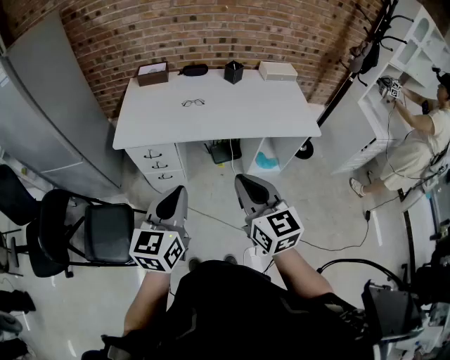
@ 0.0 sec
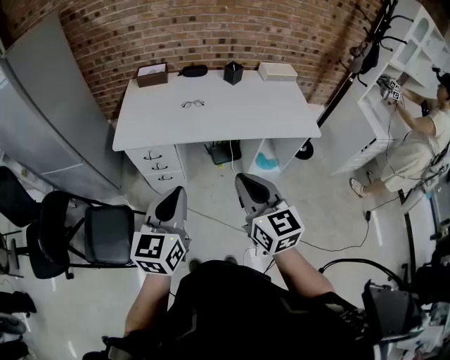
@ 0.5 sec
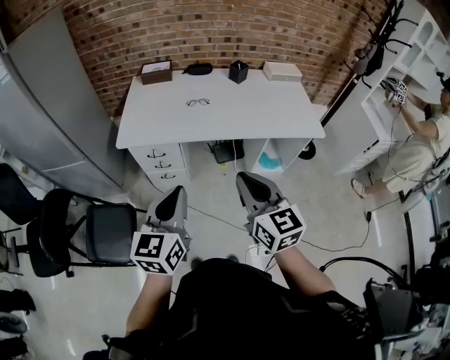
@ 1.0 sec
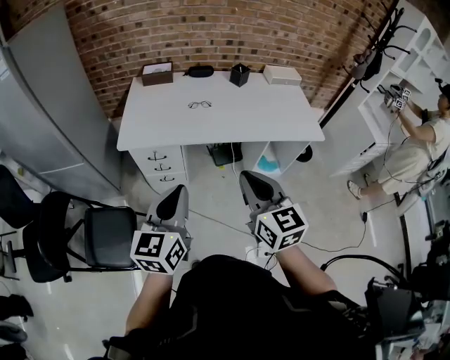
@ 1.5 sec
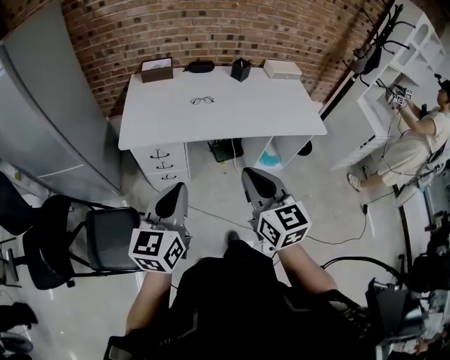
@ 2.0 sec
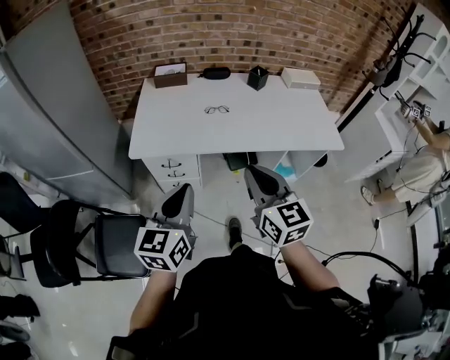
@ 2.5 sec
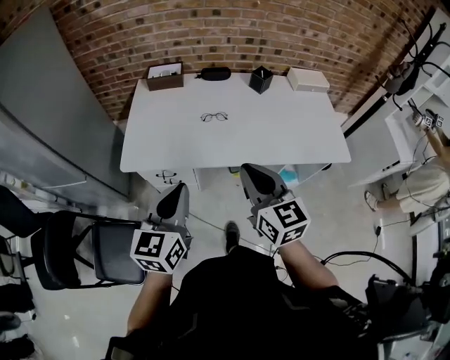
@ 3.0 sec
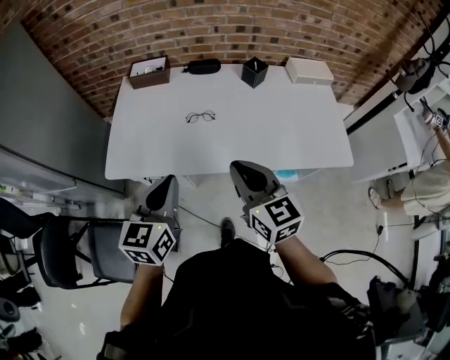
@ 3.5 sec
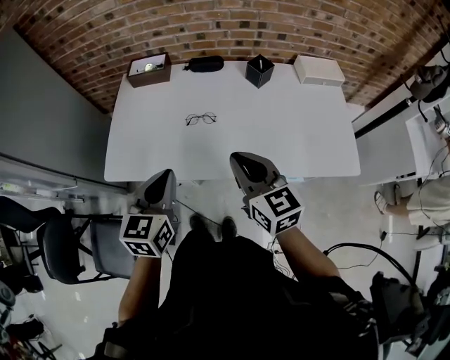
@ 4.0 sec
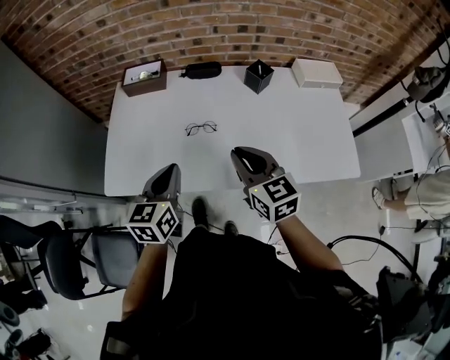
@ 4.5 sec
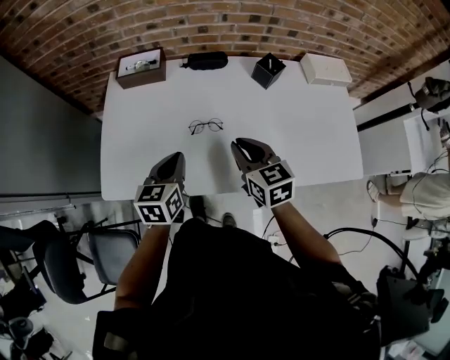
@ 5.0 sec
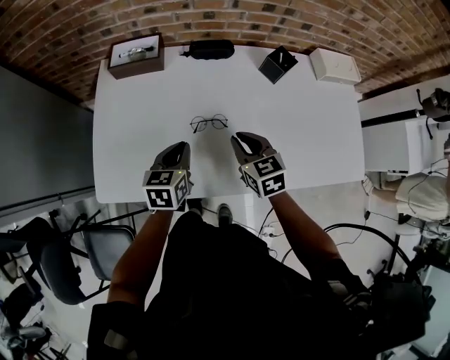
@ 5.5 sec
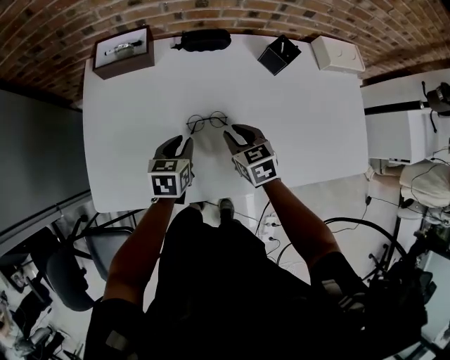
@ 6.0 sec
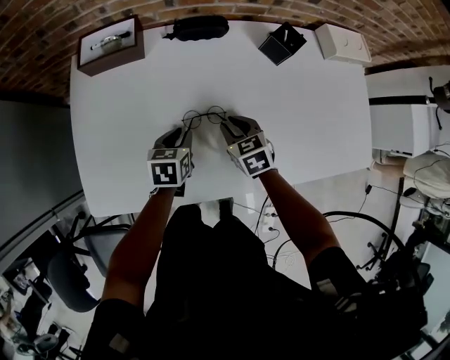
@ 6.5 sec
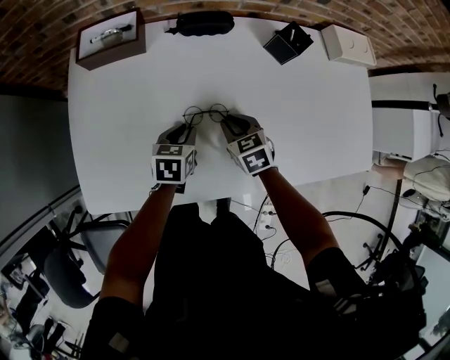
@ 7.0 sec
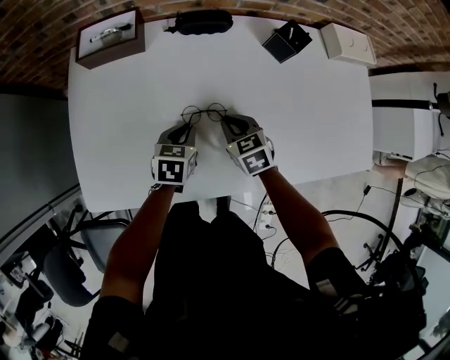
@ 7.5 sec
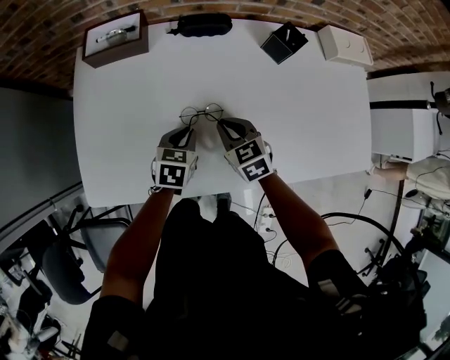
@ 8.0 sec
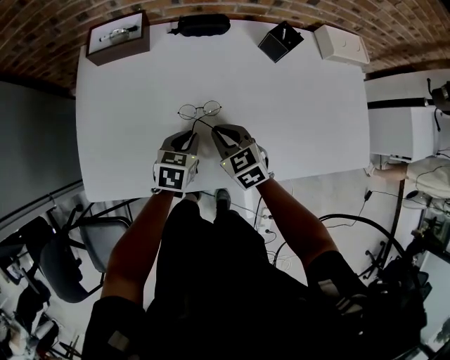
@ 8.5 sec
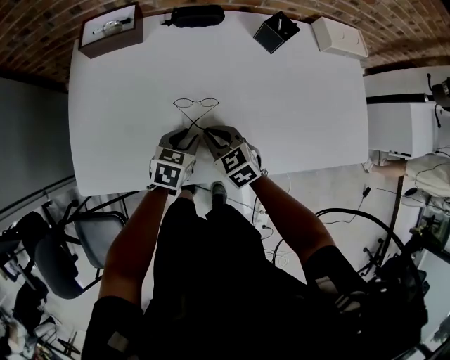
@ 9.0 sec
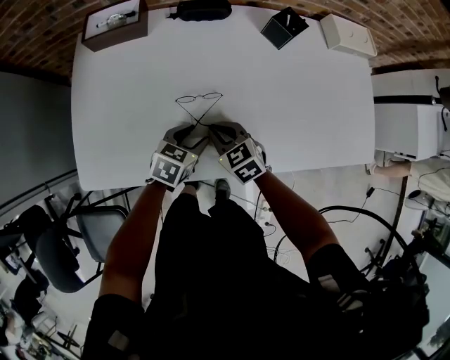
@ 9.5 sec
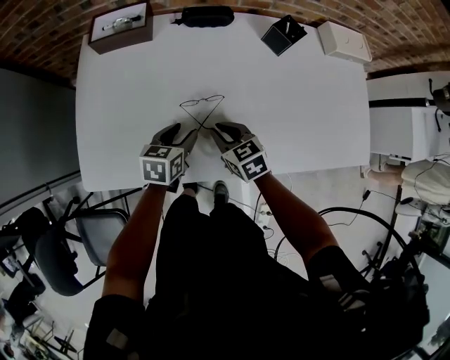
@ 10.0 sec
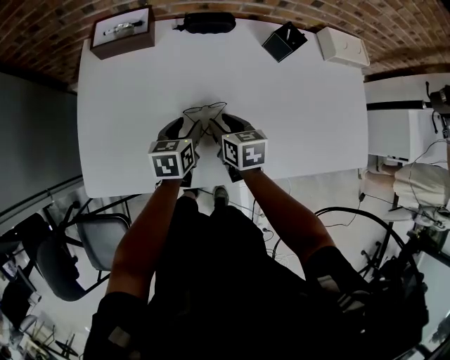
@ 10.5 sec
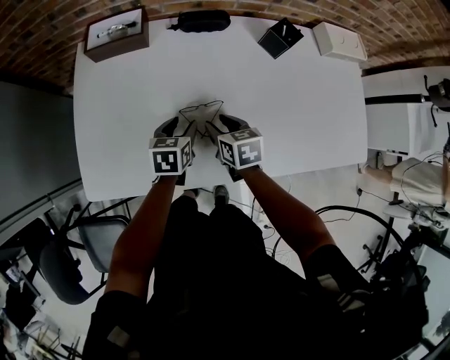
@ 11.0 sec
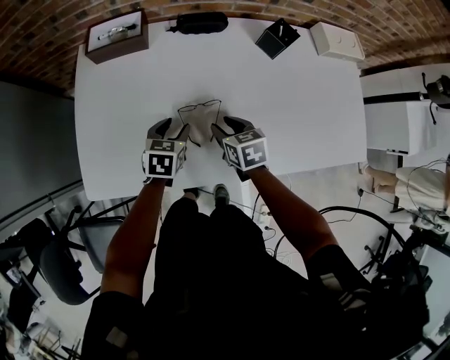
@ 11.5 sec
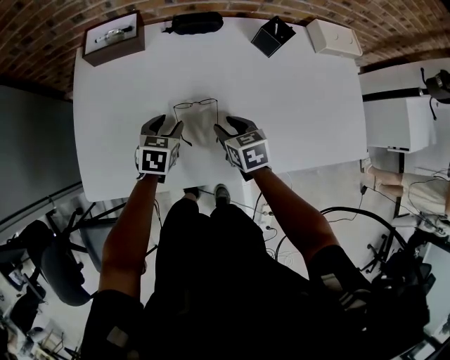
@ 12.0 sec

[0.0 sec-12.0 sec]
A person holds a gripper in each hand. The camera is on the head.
0.0 sec to 2.0 sec: Both grippers move to the left, roughly 10 cm.
2.0 sec to 4.0 sec: Both grippers travel together forward, some 35 cm.
4.0 sec to 6.0 sec: Both grippers move downward and forward, some 35 cm. The right gripper tilts its fingers some 30 degrees downward. Meanwhile the left gripper changes its angle by some 30 degrees, and opens.
8.0 sec to 10.0 sec: The right gripper is displaced backward by roughly 5 cm. The left gripper opens up.
10.0 sec to 12.0 sec: The left gripper ends up about 5 cm from where it was. The right gripper moves some 5 cm, and opens its fingers.

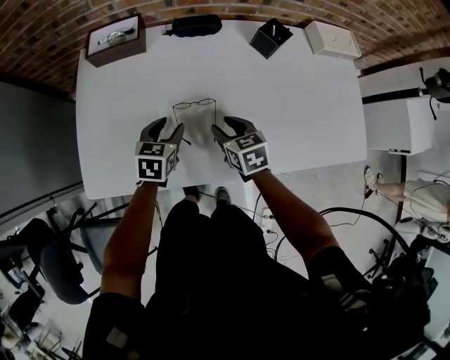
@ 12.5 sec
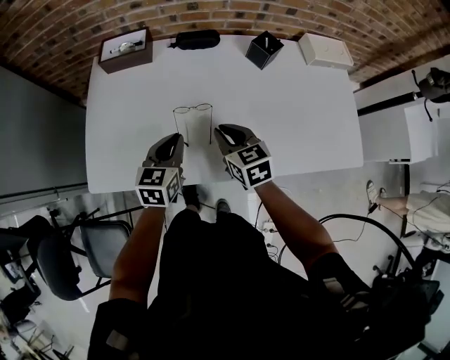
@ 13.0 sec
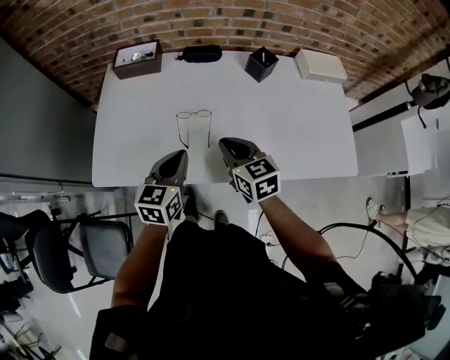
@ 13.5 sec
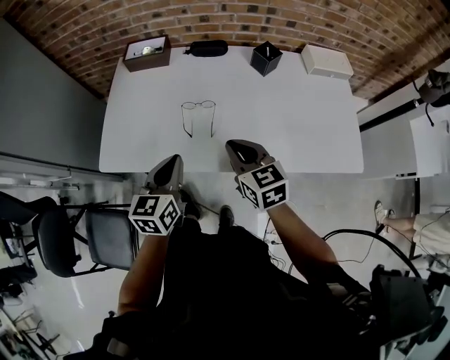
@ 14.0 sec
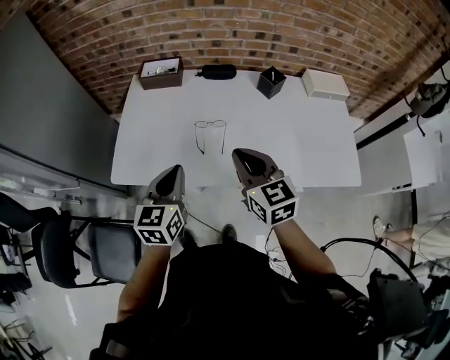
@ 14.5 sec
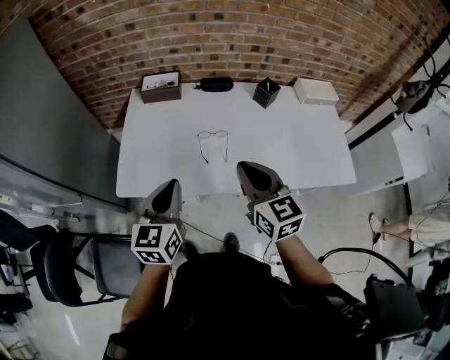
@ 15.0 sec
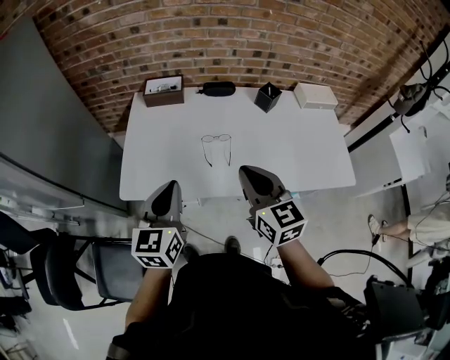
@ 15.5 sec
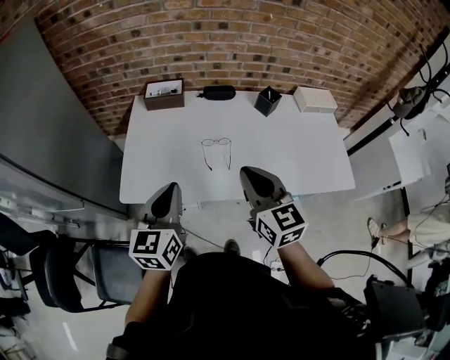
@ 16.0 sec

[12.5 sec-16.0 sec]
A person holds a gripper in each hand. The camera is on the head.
12.5 sec to 14.5 sec: Both grippers travel together upward and backward, roughly 30 cm. The right gripper changes its angle by some 30 degrees, and closes up. The left gripper rotates about 30 degrees, and closes up.
14.5 sec to 16.0 sec: The left gripper shifts approximately 10 cm to the left and upward. Meanwhile the right gripper shifts roughly 5 cm upward.

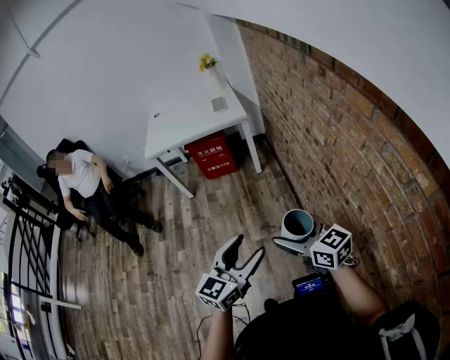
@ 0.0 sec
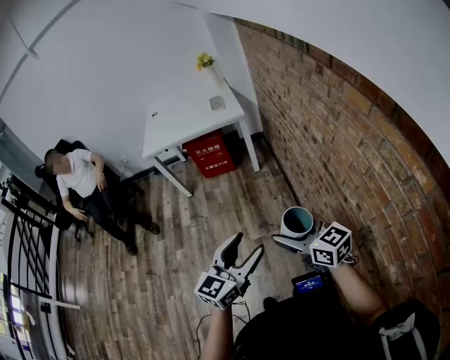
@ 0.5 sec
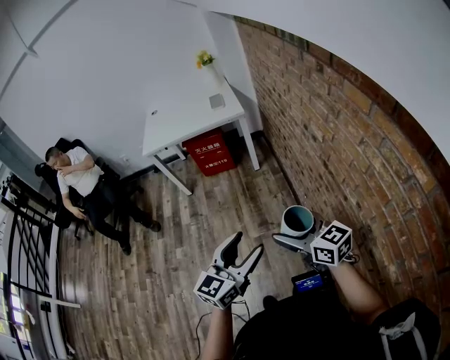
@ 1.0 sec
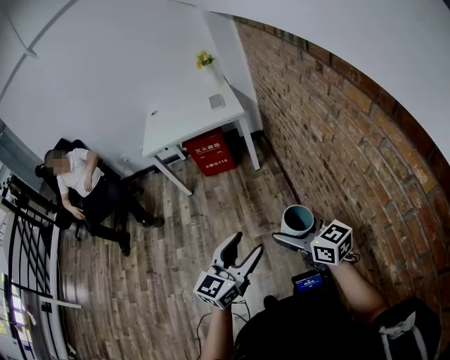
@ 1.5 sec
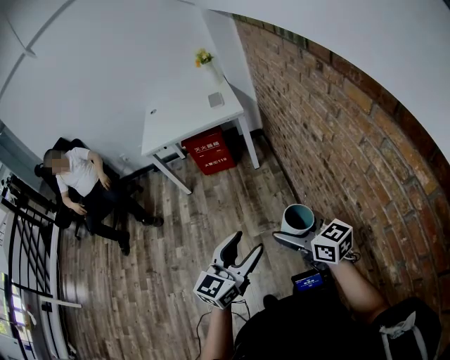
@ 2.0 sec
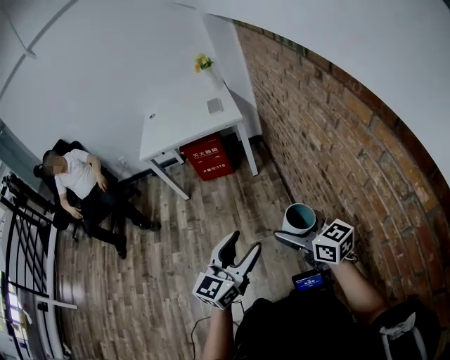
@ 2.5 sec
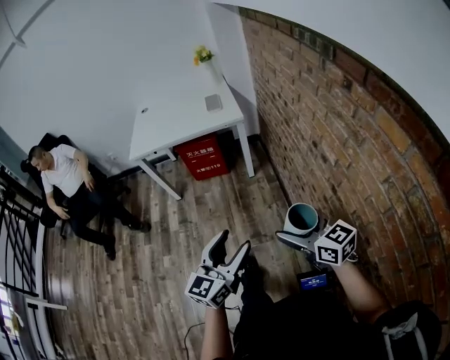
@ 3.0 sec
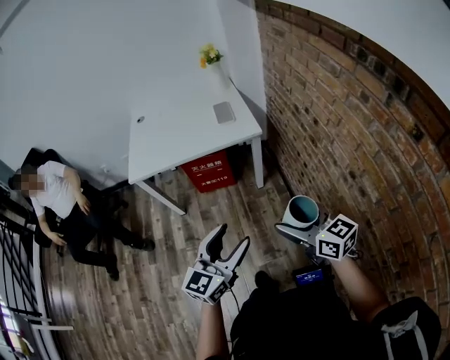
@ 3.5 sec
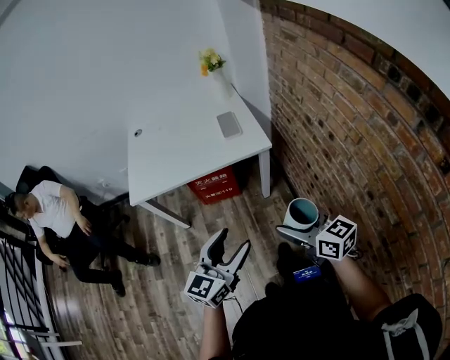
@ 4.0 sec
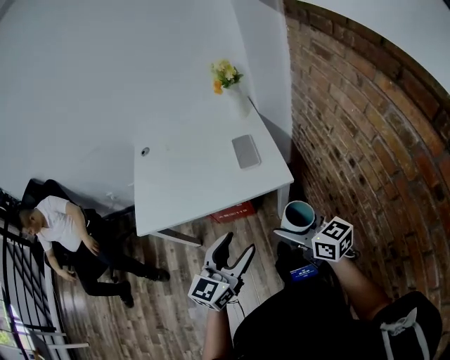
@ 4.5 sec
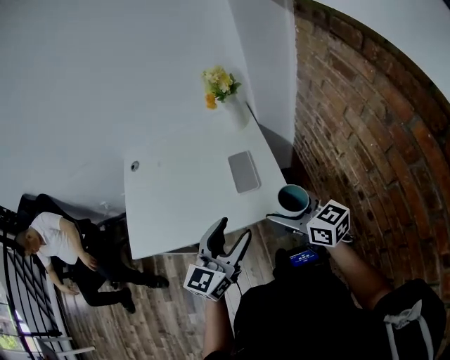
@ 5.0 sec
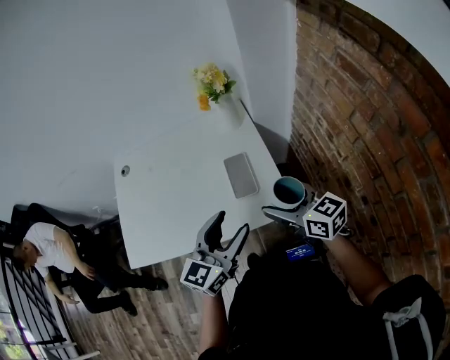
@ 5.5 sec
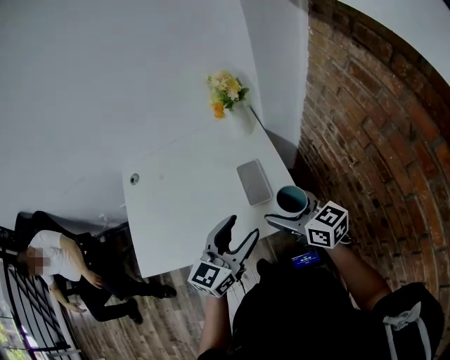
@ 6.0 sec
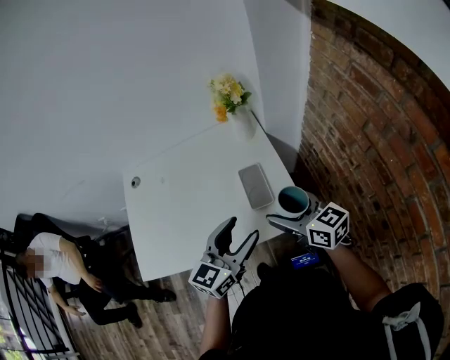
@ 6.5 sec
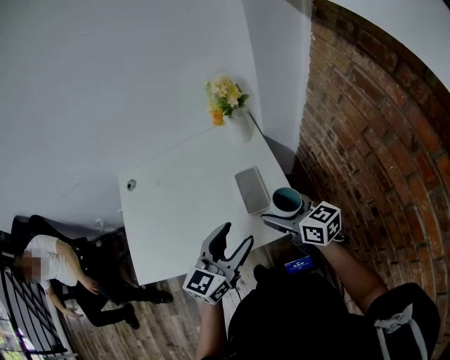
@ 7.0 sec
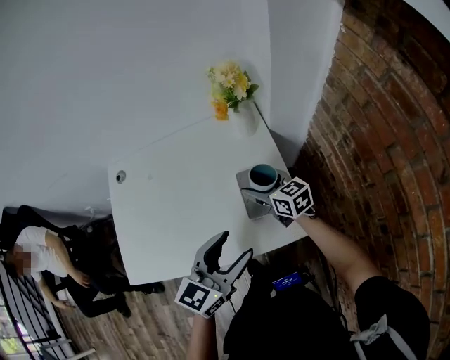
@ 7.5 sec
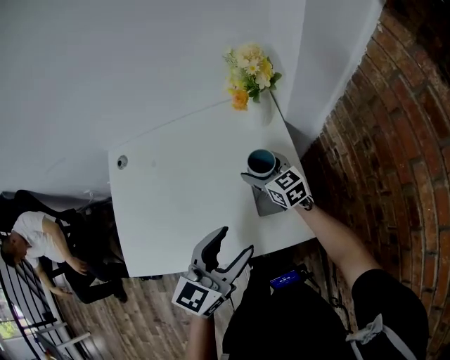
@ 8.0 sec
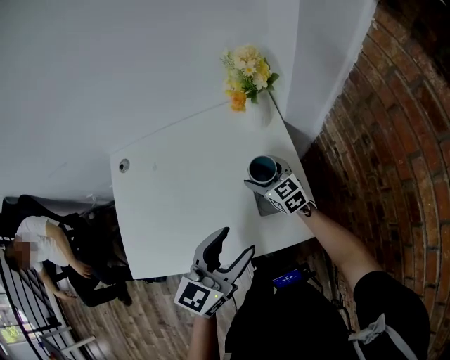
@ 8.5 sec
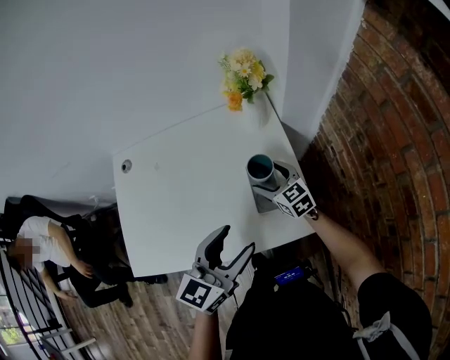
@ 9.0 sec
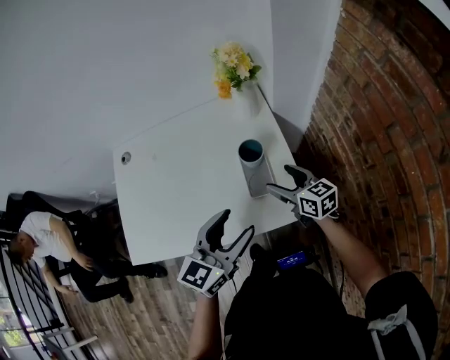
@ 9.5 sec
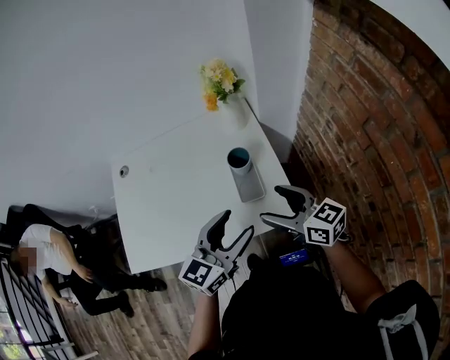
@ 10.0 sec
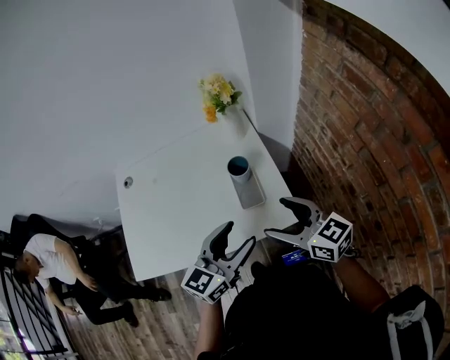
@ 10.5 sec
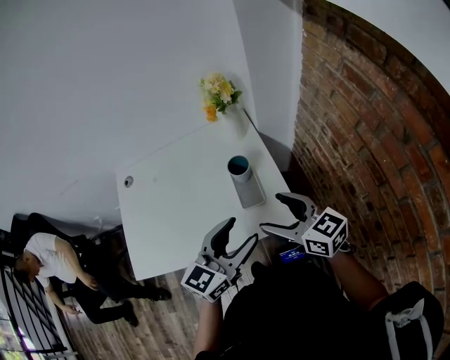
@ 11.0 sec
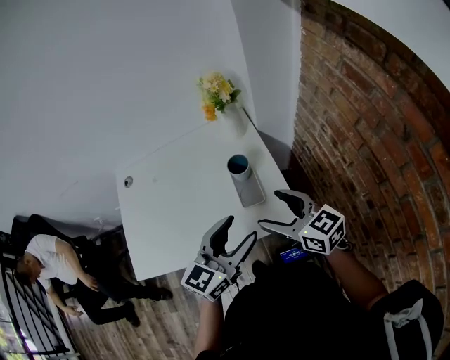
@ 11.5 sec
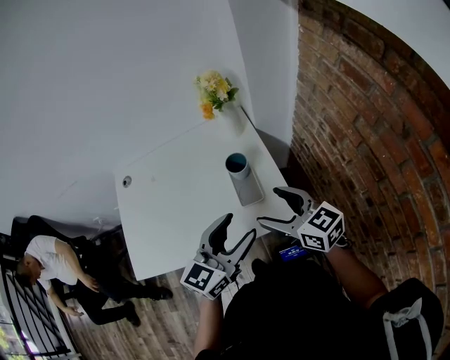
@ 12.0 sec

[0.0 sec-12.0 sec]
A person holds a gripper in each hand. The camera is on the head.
0.0 sec to 2.0 sec: Neither gripper changes place.
2.0 sec to 4.0 sec: The right gripper moves forward, roughly 25 cm; the left gripper moves forward and to the left, about 30 cm.
4.0 sec to 6.0 sec: Both grippers are carried forward, approximately 40 cm.
6.0 sec to 8.0 sec: The right gripper is displaced forward and downward by approximately 30 cm. Meanwhile the left gripper travels forward by about 5 cm.
8.0 sec to 10.0 sec: The left gripper changes place by some 5 cm; the right gripper travels backward and upward by roughly 25 cm.
10.0 sec to 12.0 sec: The grippers stay close to where they were, moving slightly.
